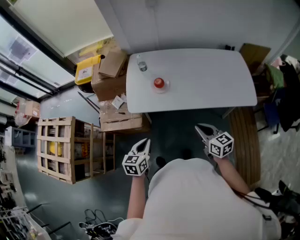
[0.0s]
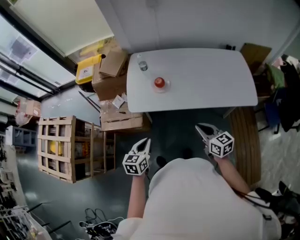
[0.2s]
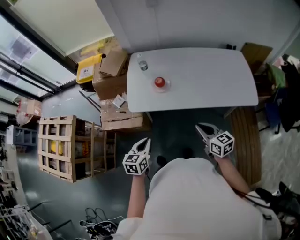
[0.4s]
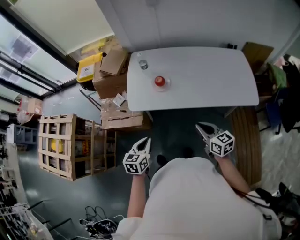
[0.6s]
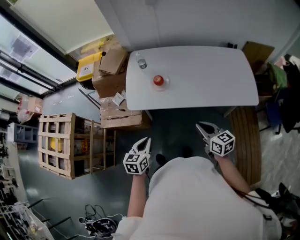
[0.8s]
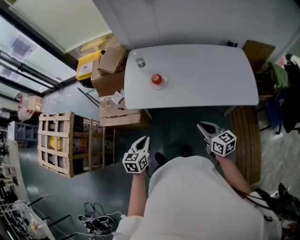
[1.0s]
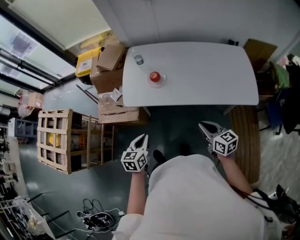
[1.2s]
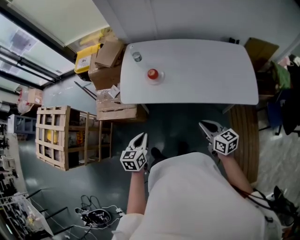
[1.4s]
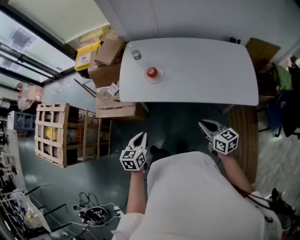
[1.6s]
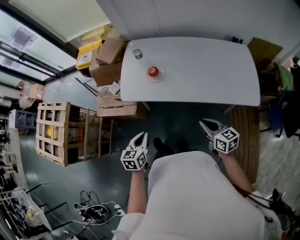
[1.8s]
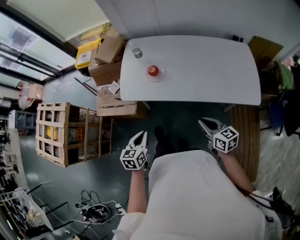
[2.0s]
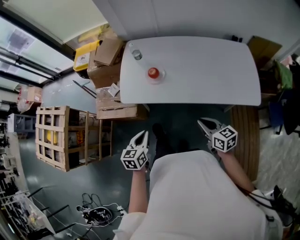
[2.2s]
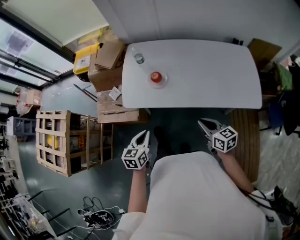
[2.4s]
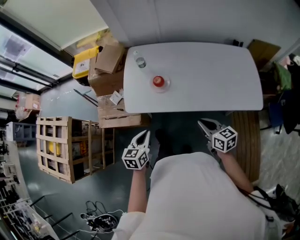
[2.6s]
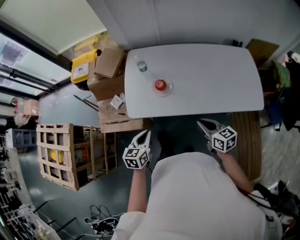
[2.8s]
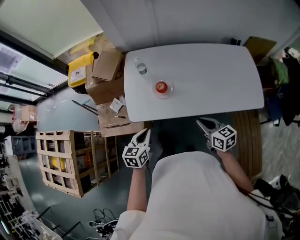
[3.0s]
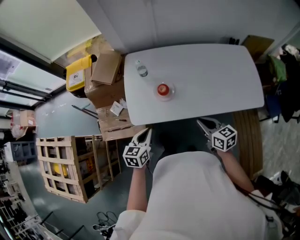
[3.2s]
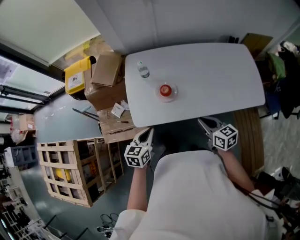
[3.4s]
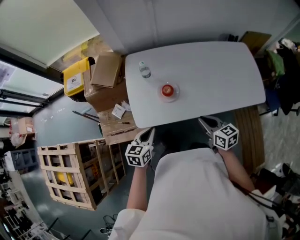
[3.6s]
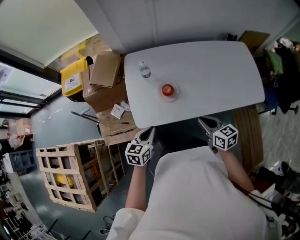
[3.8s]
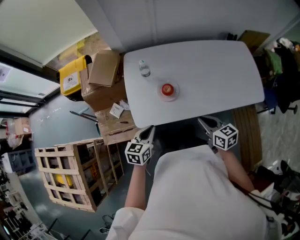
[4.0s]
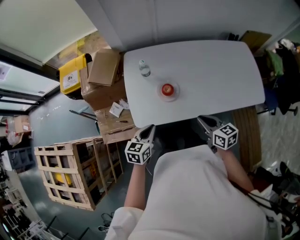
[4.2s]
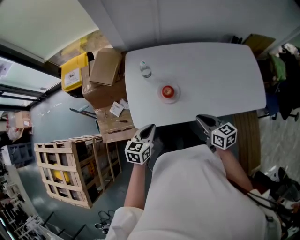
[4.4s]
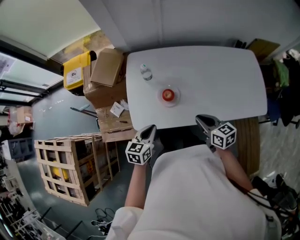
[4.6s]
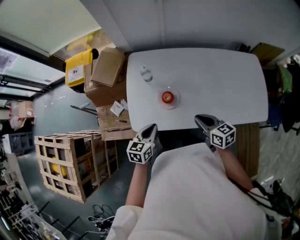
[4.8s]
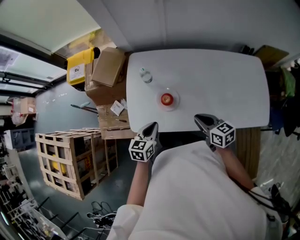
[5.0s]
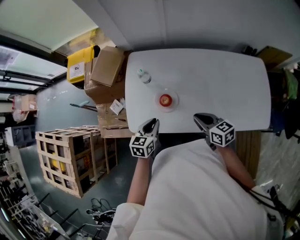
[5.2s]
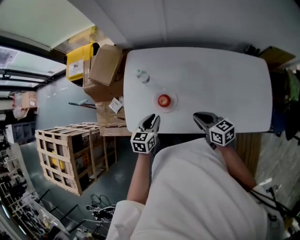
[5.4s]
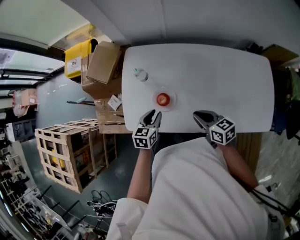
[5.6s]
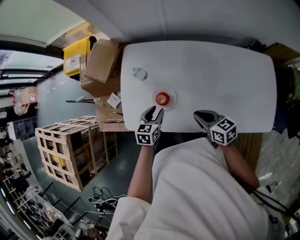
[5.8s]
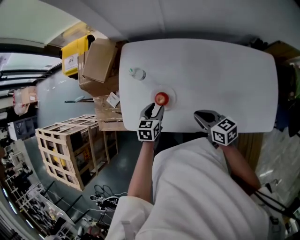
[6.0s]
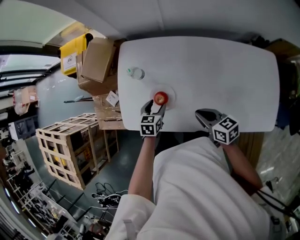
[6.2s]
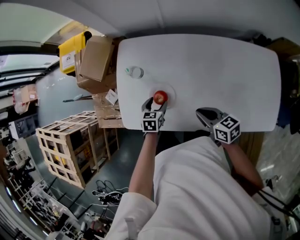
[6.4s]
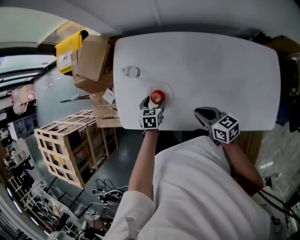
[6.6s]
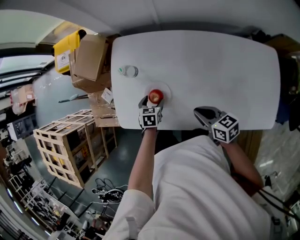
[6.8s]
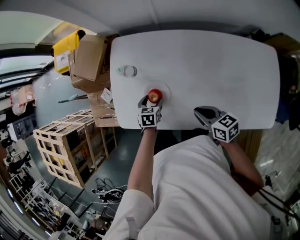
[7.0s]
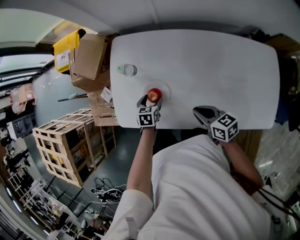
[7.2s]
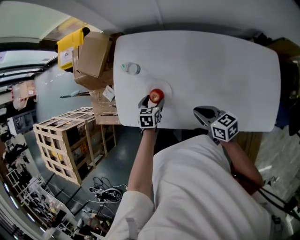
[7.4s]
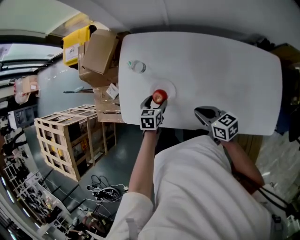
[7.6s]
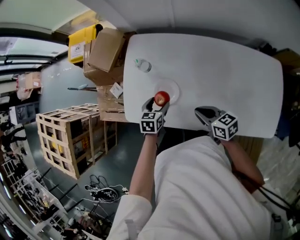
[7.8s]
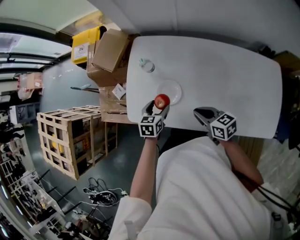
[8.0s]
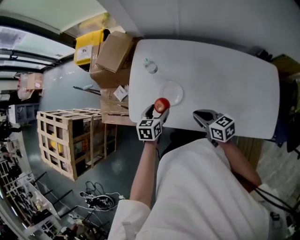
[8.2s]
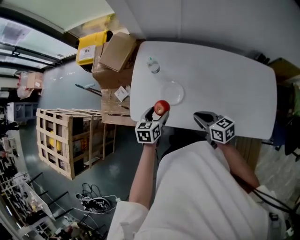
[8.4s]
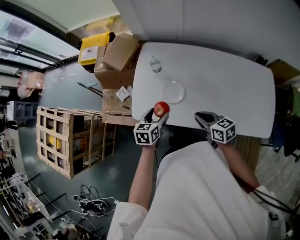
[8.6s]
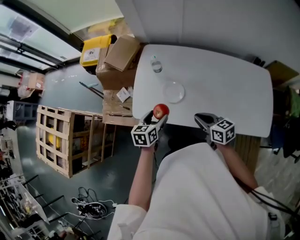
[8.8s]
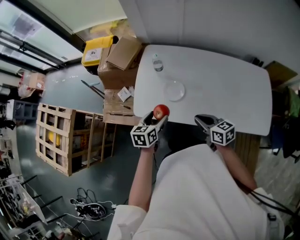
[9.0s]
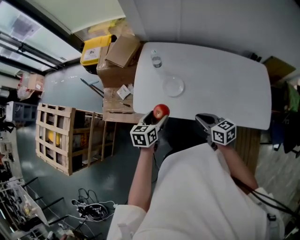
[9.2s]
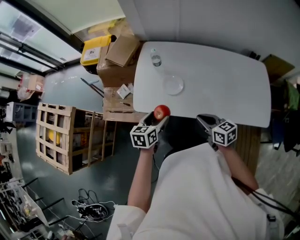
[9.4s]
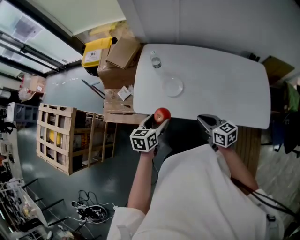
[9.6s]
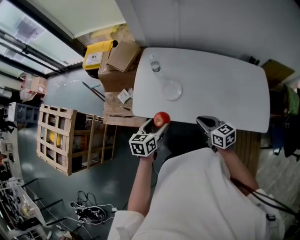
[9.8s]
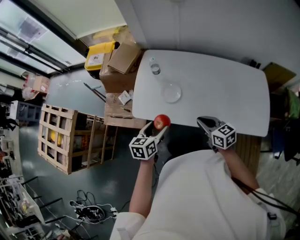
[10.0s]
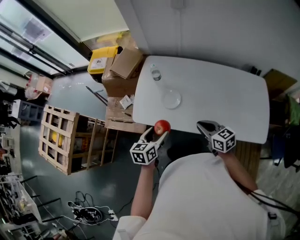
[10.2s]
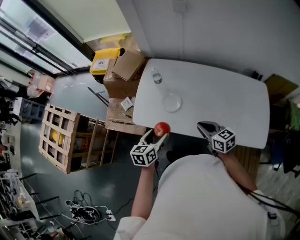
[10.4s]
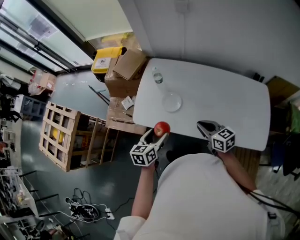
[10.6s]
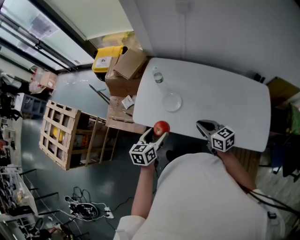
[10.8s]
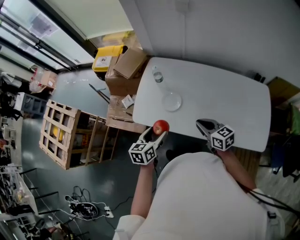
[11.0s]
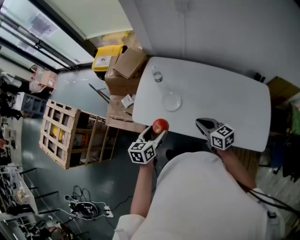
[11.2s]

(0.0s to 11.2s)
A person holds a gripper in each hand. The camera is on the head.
0.0s - 1.6s: Both grippers travel together to the right, roughly 10 cm.
1.6s - 3.2s: The left gripper moves forward, some 20 cm. Meanwhile the right gripper shifts roughly 20 cm forward and to the left.
3.2s - 4.8s: Both grippers move forward, about 10 cm.
4.8s - 6.4s: The left gripper goes some 20 cm downward, forward and to the right, rotates roughly 20 degrees, and opens its fingers; the right gripper shifts roughly 10 cm to the right, forward and downward.
6.4s - 8.0s: The left gripper moves upward, some 5 cm.
8.0s - 9.6s: The left gripper moves backward, upward and to the left, some 20 cm. Meanwhile the right gripper heads backward and upward, covering roughly 15 cm.
9.6s - 11.2s: The left gripper ends up some 5 cm from where it was; the right gripper heads forward and to the right, covering some 10 cm.

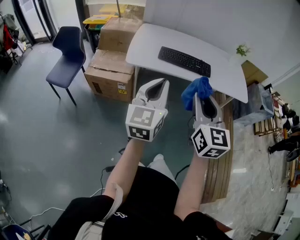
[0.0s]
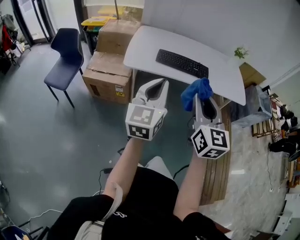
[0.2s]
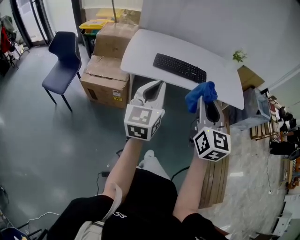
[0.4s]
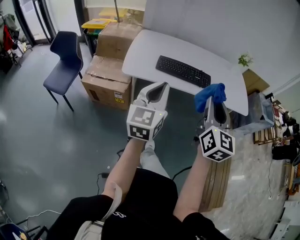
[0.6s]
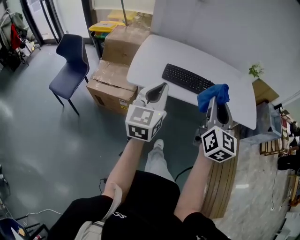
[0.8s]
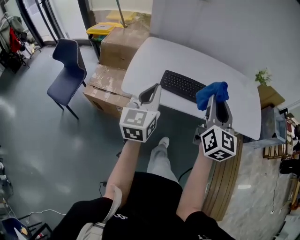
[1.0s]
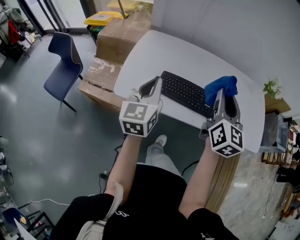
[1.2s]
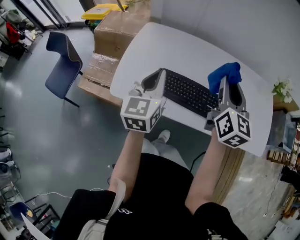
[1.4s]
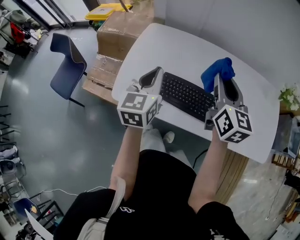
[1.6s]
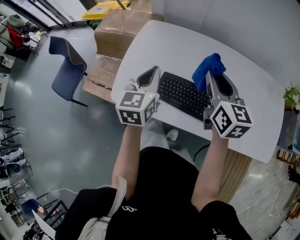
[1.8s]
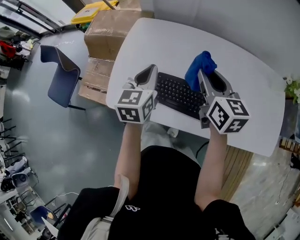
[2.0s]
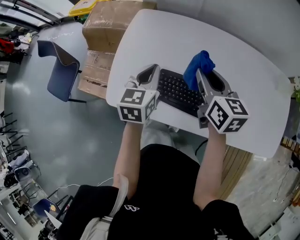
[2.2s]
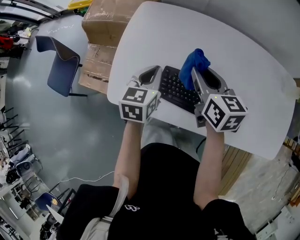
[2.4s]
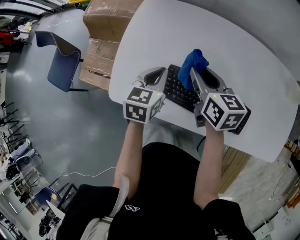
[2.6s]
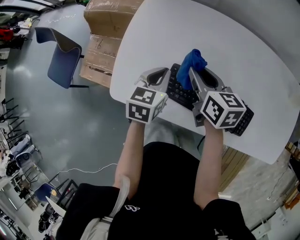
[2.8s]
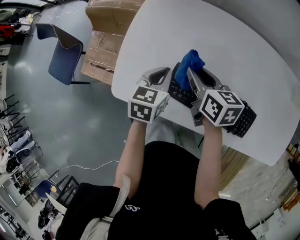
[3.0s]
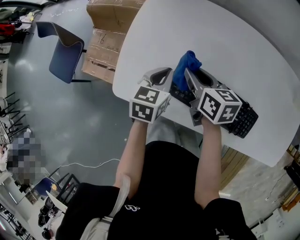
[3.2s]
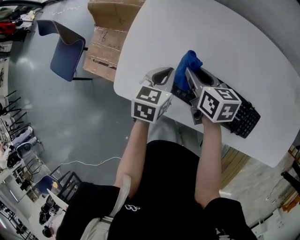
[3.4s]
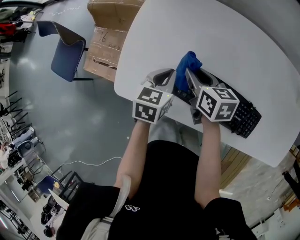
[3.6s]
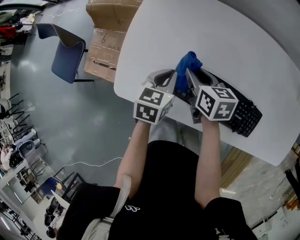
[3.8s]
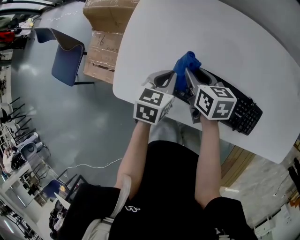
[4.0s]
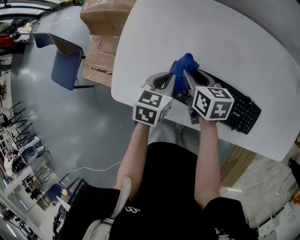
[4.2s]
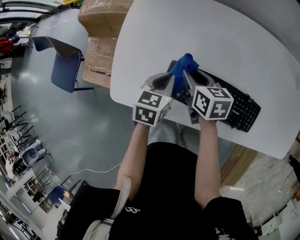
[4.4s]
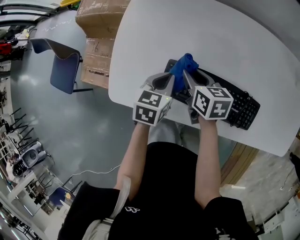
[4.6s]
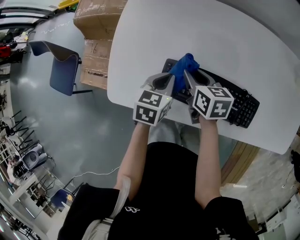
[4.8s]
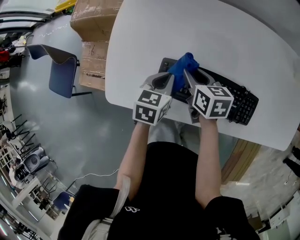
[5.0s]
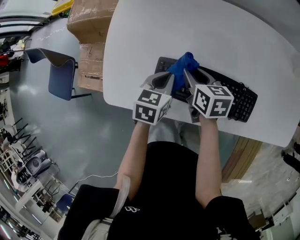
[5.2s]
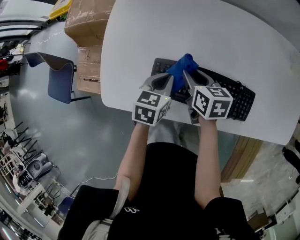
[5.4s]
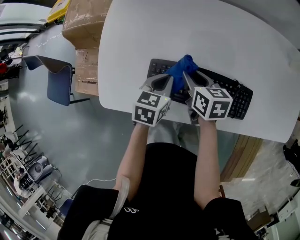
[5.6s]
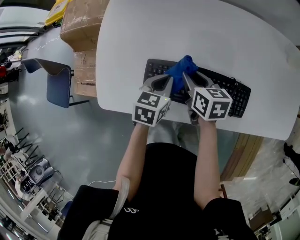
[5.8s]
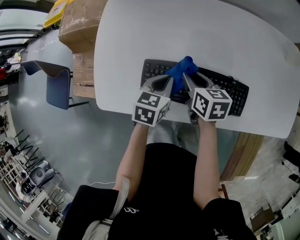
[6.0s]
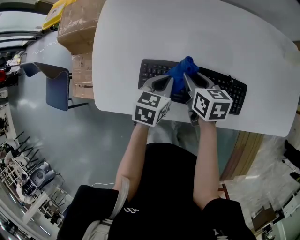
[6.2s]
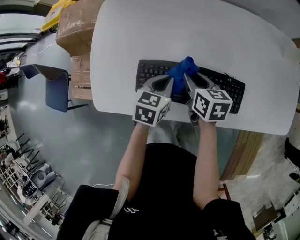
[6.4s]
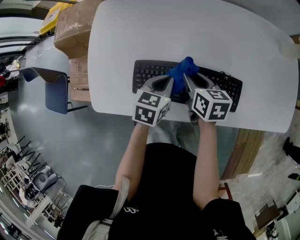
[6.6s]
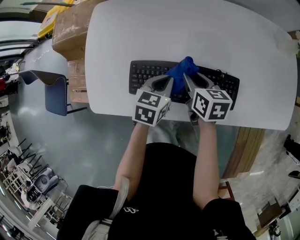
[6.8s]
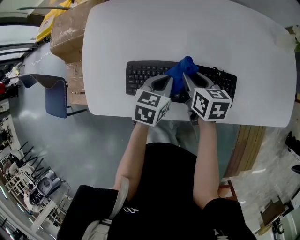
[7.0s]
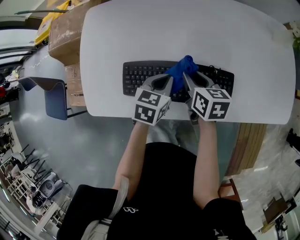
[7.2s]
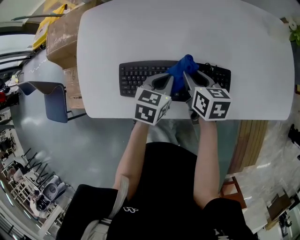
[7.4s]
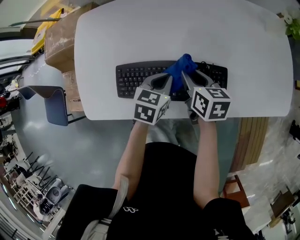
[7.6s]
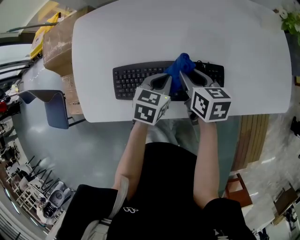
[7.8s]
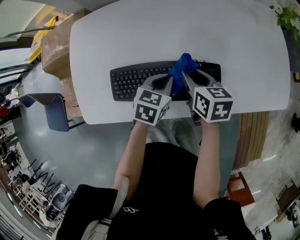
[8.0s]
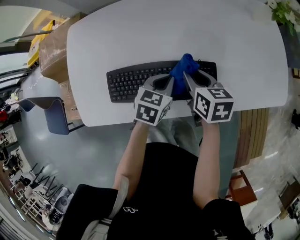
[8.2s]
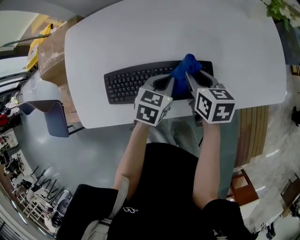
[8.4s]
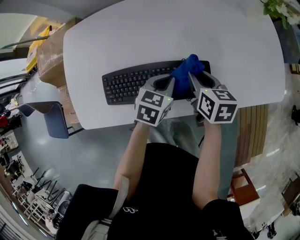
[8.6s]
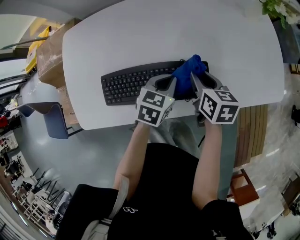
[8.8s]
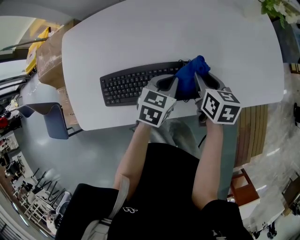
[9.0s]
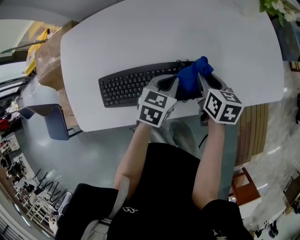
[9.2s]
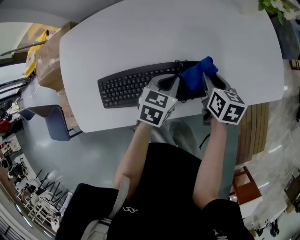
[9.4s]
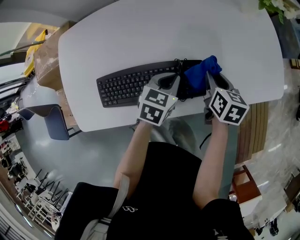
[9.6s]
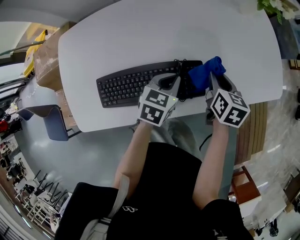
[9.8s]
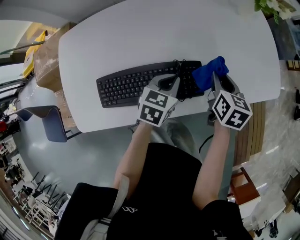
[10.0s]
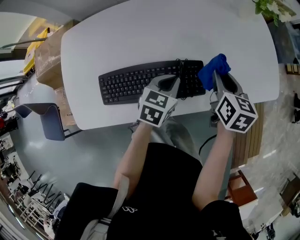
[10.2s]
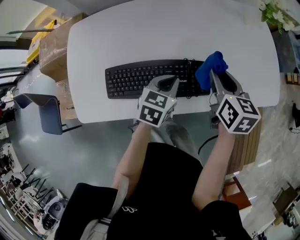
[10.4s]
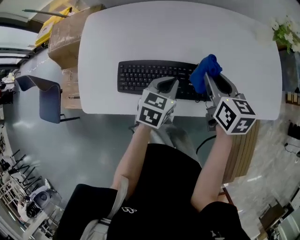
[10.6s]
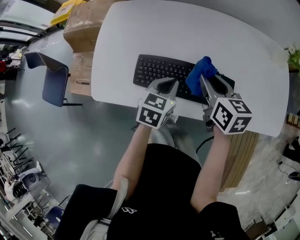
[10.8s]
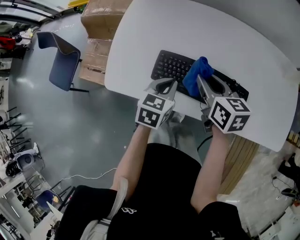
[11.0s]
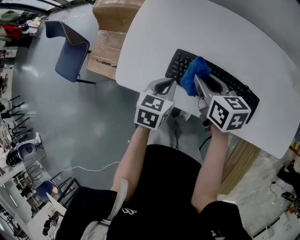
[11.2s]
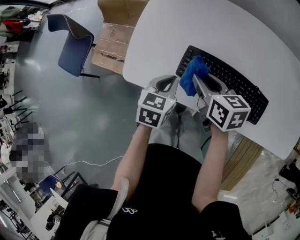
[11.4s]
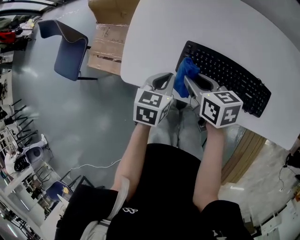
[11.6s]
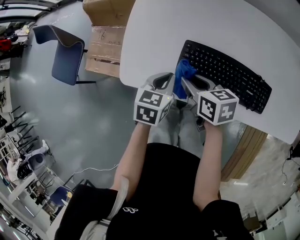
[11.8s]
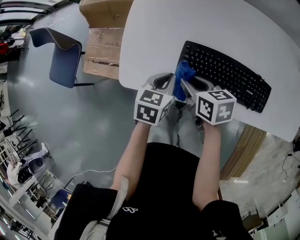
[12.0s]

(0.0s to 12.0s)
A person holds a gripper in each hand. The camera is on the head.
0.0s - 1.6s: The pair of grippers is taken forward, roughly 50 cm. The left gripper turns by roughly 20 degrees.
1.6s - 3.0s: The right gripper shifts some 25 cm downward and to the left, and turns by some 40 degrees; the left gripper moves downward, roughly 20 cm, and swivels approximately 30 degrees.
3.0s - 4.4s: The left gripper shifts by approximately 5 cm, while the right gripper heads downward, covering roughly 5 cm.
4.4s - 6.0s: The two grippers go some 10 cm to the right.
6.0s - 7.6s: The grippers both shift to the right by about 10 cm.
7.6s - 9.0s: Both grippers travel together to the right, approximately 10 cm.
9.0s - 10.4s: The right gripper heads upward, covering about 10 cm.
10.4s - 12.0s: The right gripper moves some 40 cm, and rotates roughly 40 degrees. The left gripper shifts by about 30 cm, and changes its angle by approximately 30 degrees.

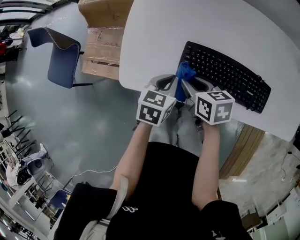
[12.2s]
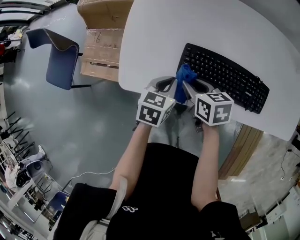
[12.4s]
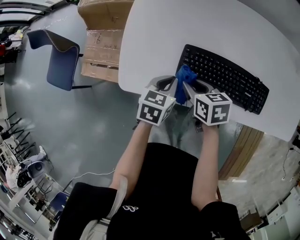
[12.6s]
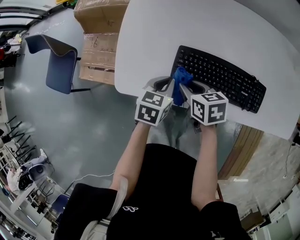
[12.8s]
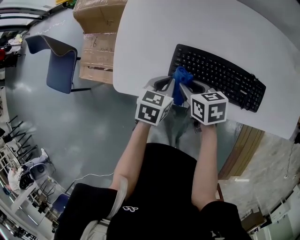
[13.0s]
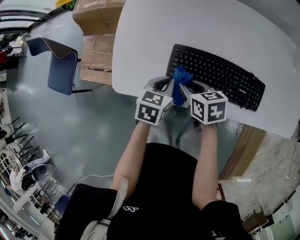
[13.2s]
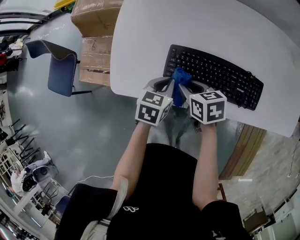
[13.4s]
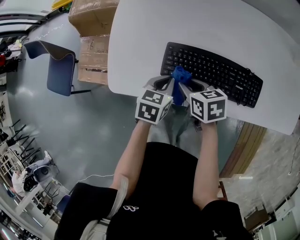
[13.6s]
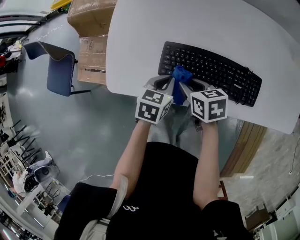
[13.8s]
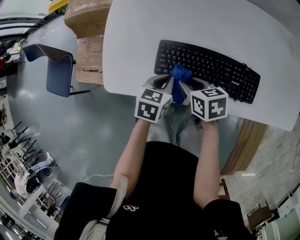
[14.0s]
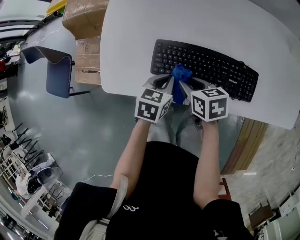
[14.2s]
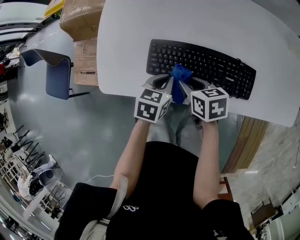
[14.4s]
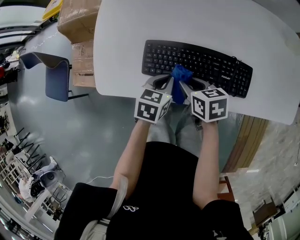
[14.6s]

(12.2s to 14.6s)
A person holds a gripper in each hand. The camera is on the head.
12.2s - 13.4s: The grippers stay close to where they were, moving slightly.
13.4s - 14.6s: The two grippers go some 10 cm to the right.
